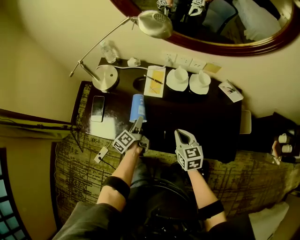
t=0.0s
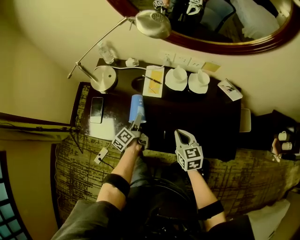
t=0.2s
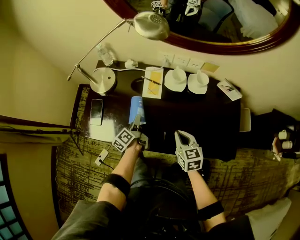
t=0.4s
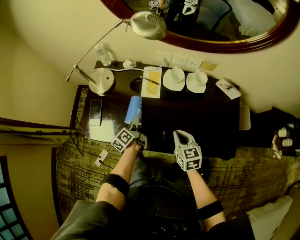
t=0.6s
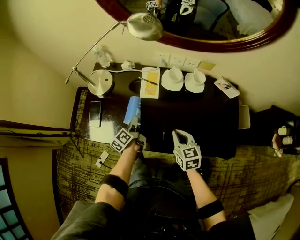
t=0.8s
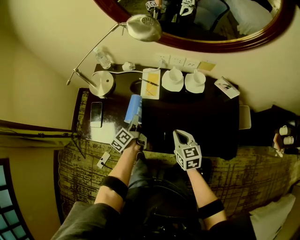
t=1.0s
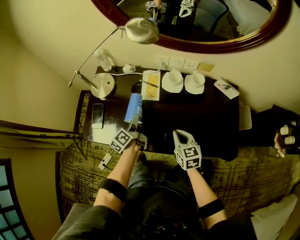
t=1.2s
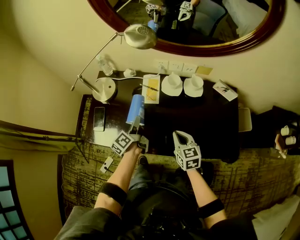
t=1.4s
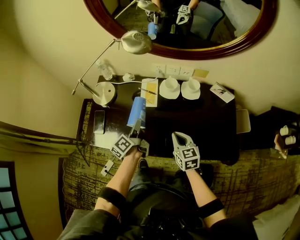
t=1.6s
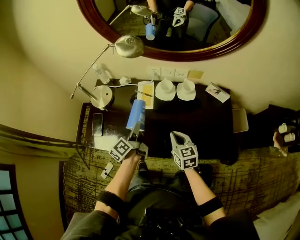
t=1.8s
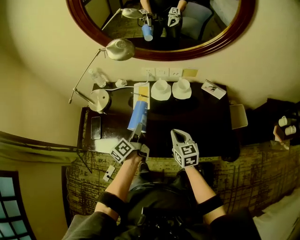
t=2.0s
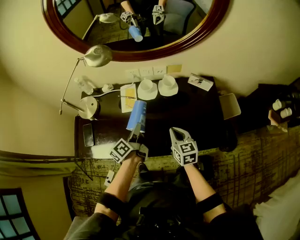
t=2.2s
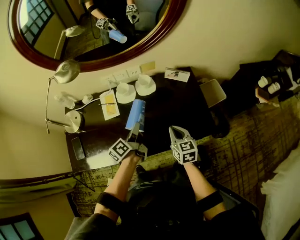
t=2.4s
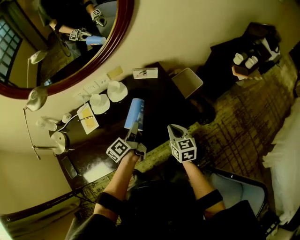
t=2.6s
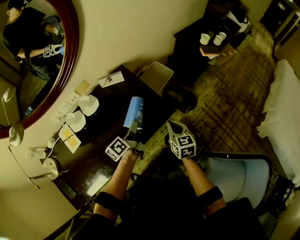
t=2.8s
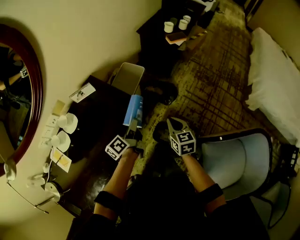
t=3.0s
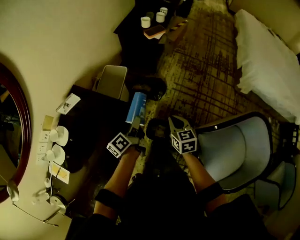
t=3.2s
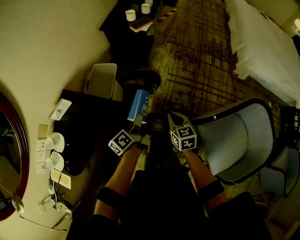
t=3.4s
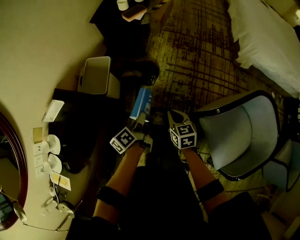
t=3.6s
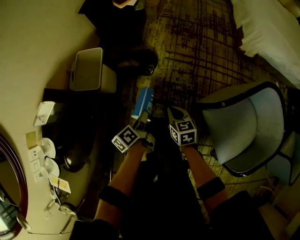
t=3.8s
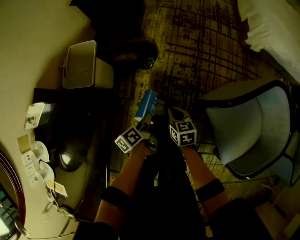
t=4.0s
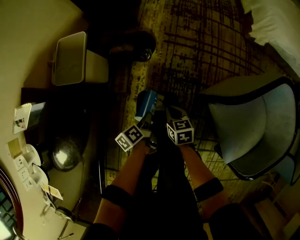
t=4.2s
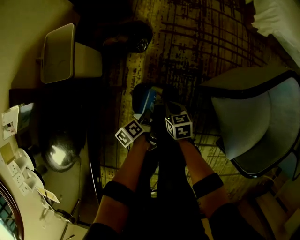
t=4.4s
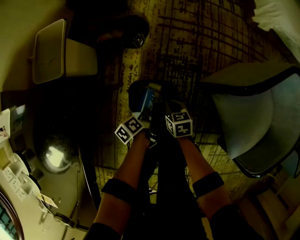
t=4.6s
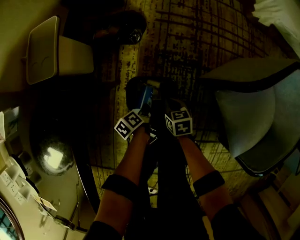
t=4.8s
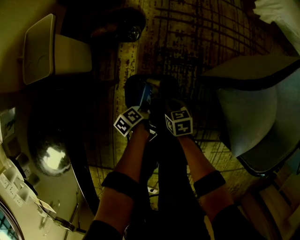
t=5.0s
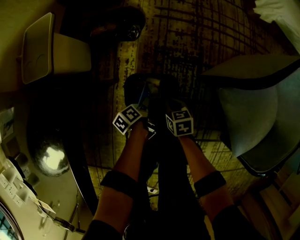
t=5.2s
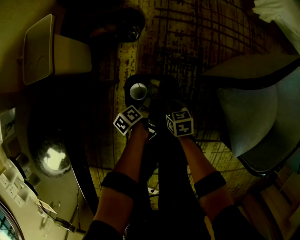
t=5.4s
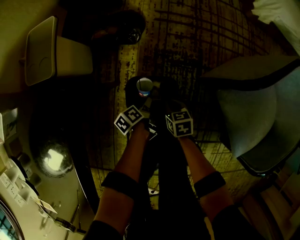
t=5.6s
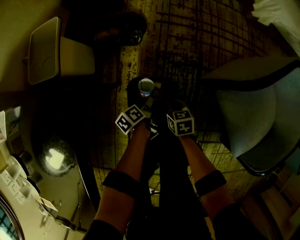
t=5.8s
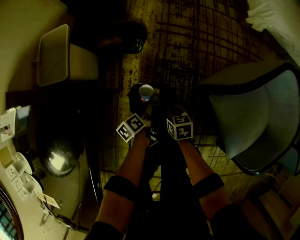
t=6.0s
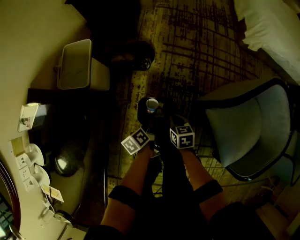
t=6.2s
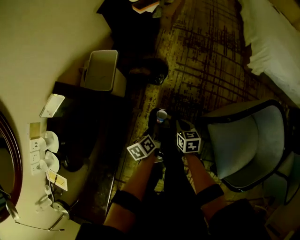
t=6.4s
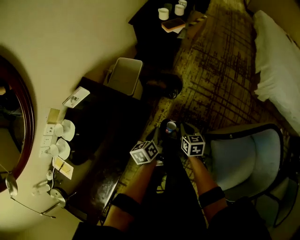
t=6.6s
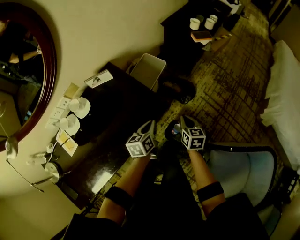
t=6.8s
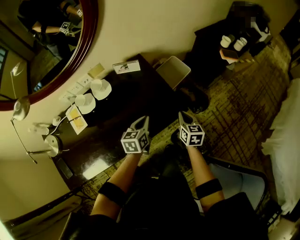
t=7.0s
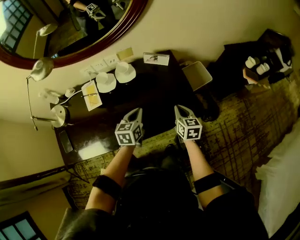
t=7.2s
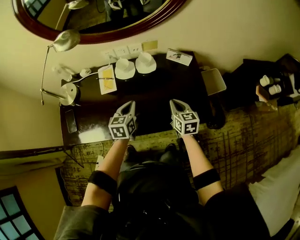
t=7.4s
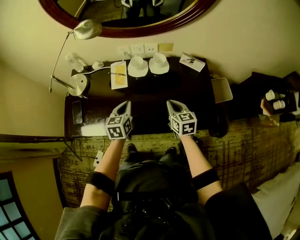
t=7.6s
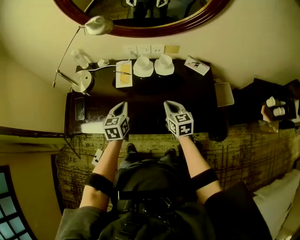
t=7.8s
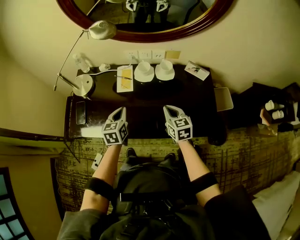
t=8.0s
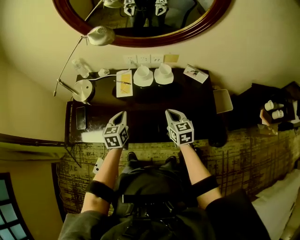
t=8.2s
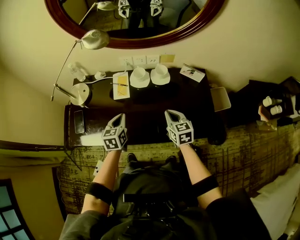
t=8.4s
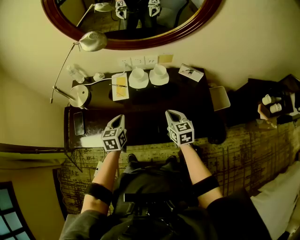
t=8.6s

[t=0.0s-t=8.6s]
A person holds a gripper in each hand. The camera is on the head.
t=0.0s to t=1.4s: The left gripper travels upward by roughly 10 cm, and closes.
t=1.4s to t=2.8s: The pair of grippers is taken roughly 50 cm. The right gripper swivels roughly 50 degrees, while the left gripper swivels some 60 degrees.
t=2.8s to t=4.4s: The grippers both shift downward by about 50 cm. The left gripper tips its fingers downward by about 30 degrees, while the right gripper changes its angle by some 40 degrees.
t=4.4s to t=5.8s: Both grippers move downward, some 10 cm. The left gripper opens its fingers.
t=5.8s to t=7.2s: Both grippers are carried roughly 40 cm. Both grippers move upward, some 50 cm. The right gripper turns by approximately 60 degrees; the left gripper rotates some 60 degrees, and closes.
t=7.2s to t=8.6s: The left gripper changes place by roughly 25 cm, and swivels about 20 degrees, while the right gripper ends up about 20 cm from where it was, and swivels about 30 degrees.

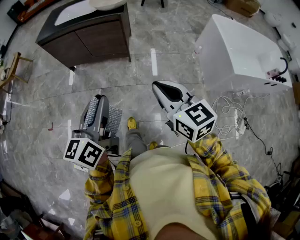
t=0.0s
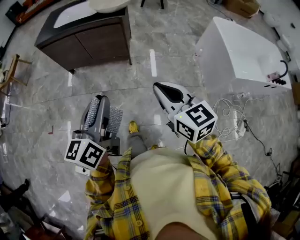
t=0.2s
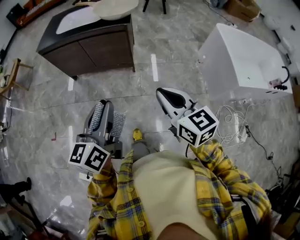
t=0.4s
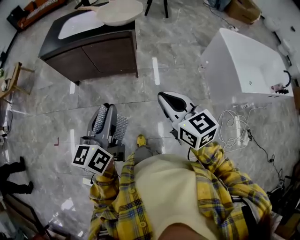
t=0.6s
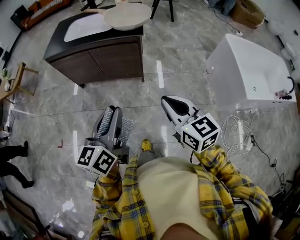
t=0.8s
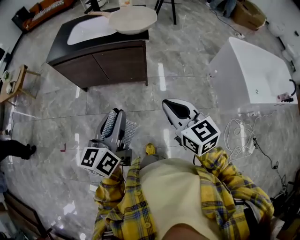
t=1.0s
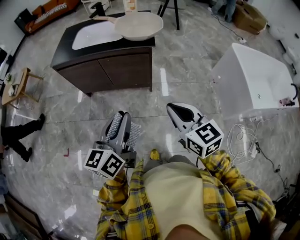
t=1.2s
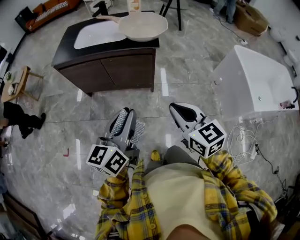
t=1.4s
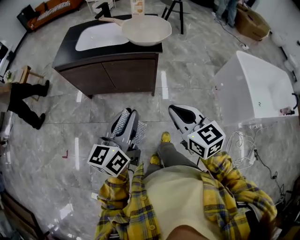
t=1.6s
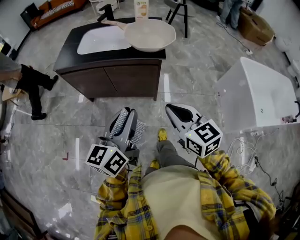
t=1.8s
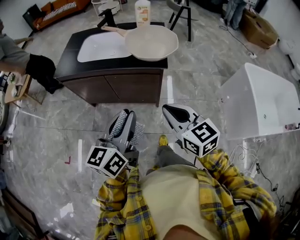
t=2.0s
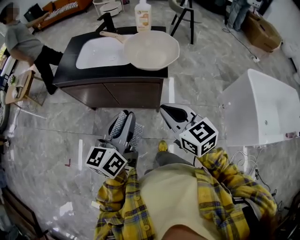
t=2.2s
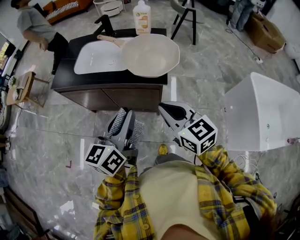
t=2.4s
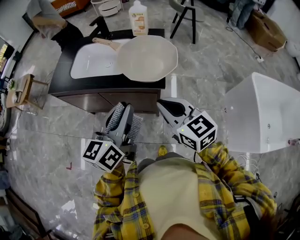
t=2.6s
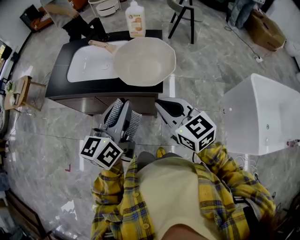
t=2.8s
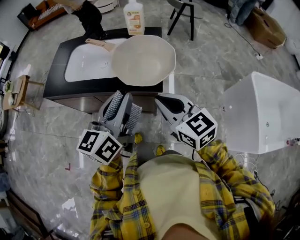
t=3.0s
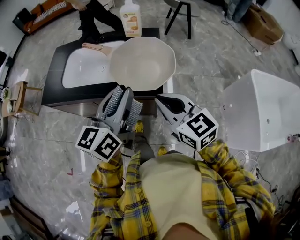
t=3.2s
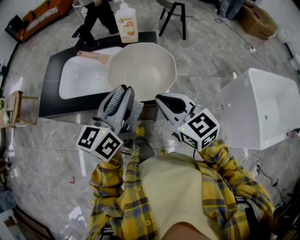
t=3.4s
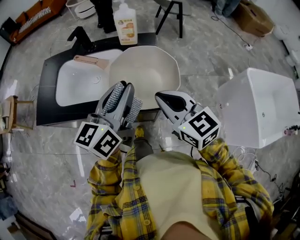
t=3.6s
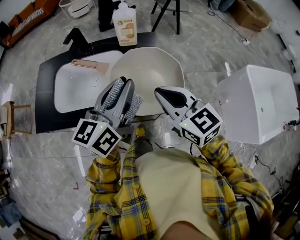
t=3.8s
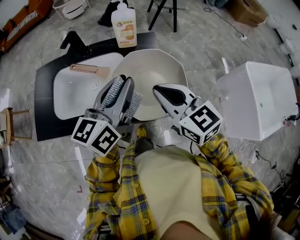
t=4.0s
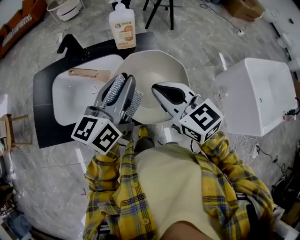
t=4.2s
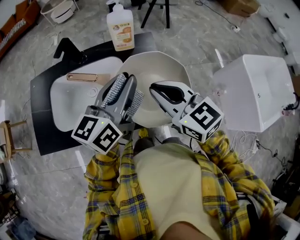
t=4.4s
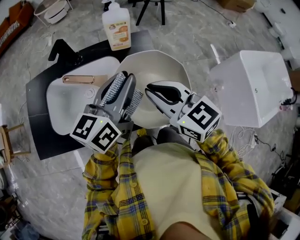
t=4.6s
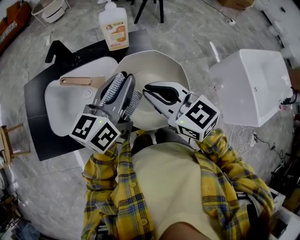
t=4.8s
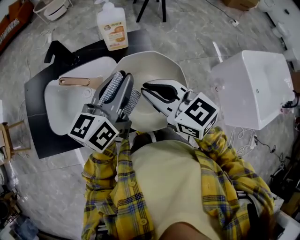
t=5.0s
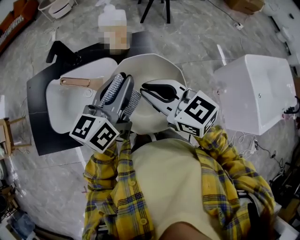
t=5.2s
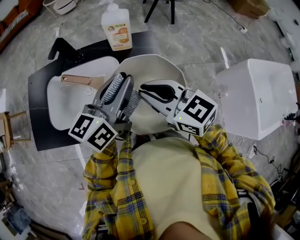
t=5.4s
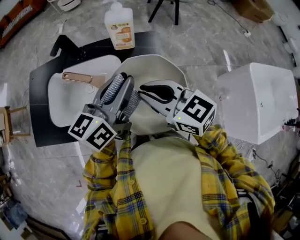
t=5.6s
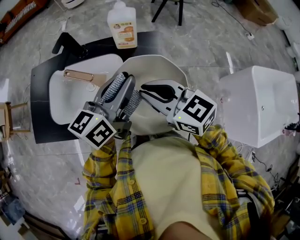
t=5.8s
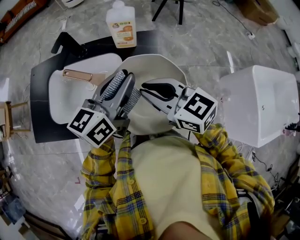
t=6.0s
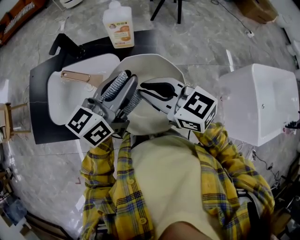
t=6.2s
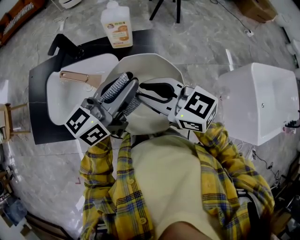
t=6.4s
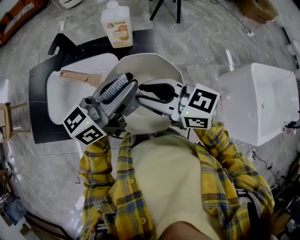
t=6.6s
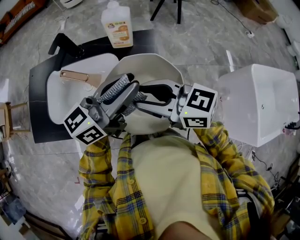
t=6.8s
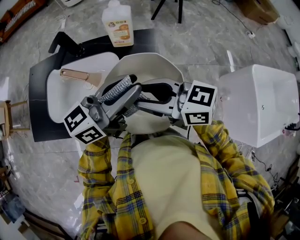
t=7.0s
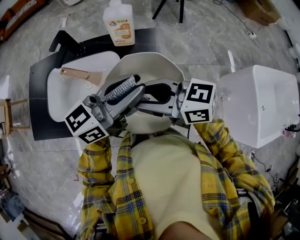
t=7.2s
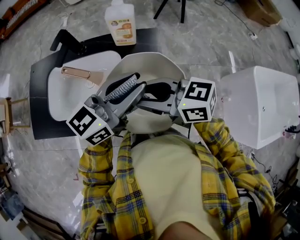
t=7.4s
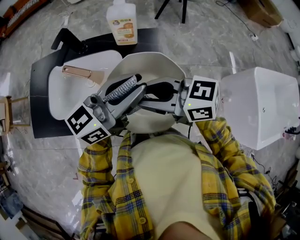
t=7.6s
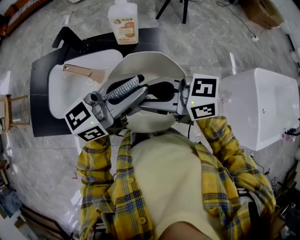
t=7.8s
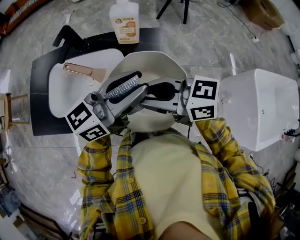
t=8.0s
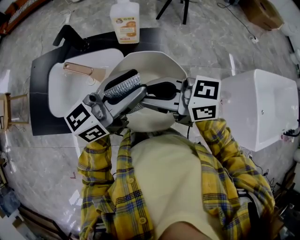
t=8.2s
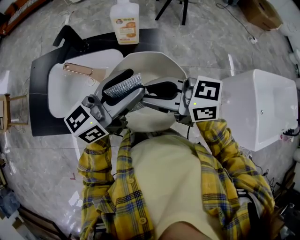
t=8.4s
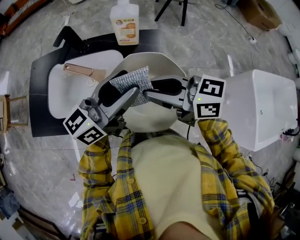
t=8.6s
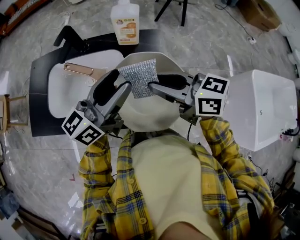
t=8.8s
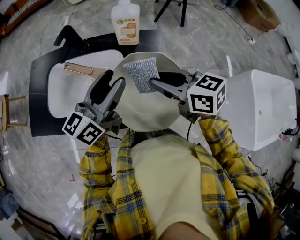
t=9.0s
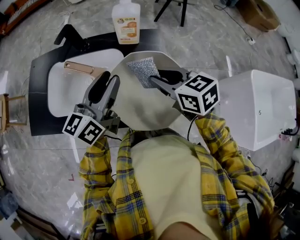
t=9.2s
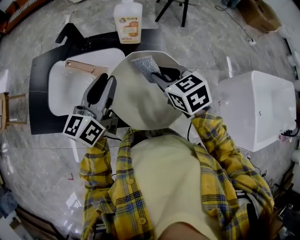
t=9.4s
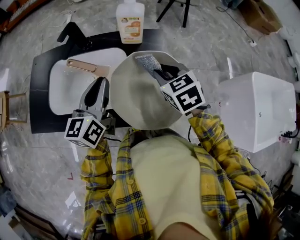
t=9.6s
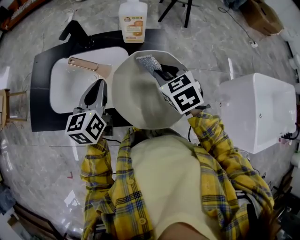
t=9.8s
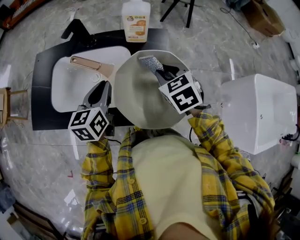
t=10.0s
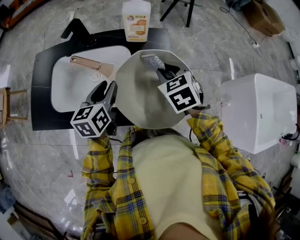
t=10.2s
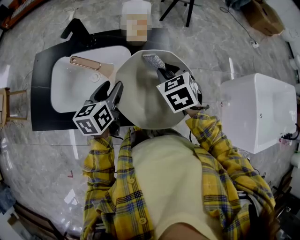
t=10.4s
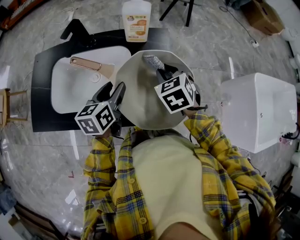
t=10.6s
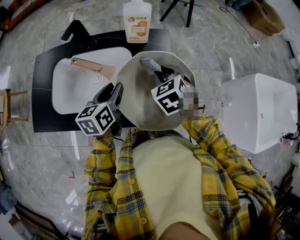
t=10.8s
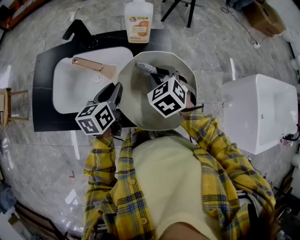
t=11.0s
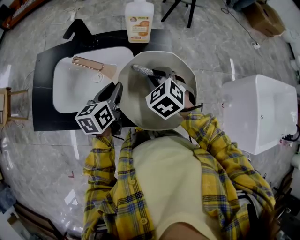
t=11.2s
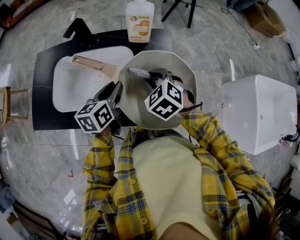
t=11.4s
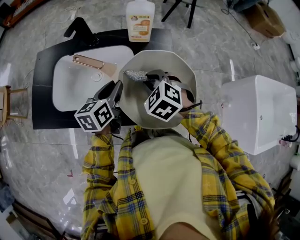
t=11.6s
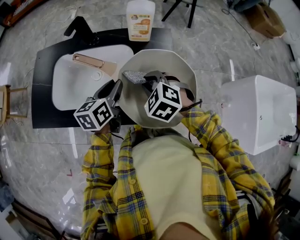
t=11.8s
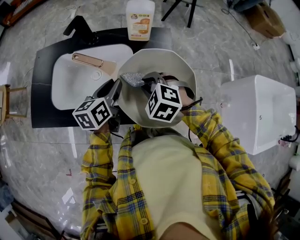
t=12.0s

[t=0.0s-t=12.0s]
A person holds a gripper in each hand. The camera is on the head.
t=0.0s to t=1.6s: The right gripper shifts roughly 25 cm forward and to the left. The left gripper goes roughly 25 cm forward.
t=1.6s to t=3.0s: The two grippers go roughly 30 cm forward.
t=3.0s to t=4.4s: Both grippers travel together forward, about 20 cm. The left gripper turns by about 20 degrees.
t=4.4s to t=6.0s: The grippers stay close to where they were, moving slightly.
t=6.0s to t=7.6s: The right gripper swivels about 20 degrees, and opens up; the left gripper moves approximately 5 cm, and rotates about 20 degrees.
t=7.6s to t=9.0s: The right gripper ends up about 5 cm from where it was, and changes its angle by roughly 20 degrees, while the left gripper ends up about 10 cm from where it was, rotates approximately 20 degrees, and opens.
t=9.0s to t=10.4s: The right gripper is displaced downward by roughly 10 cm, and rotates approximately 50 degrees, while the left gripper travels downward and to the left by about 15 cm, tilts its fingers some 30 degrees downward, and closes and opens again.
t=10.4s to t=12.0s: The left gripper closes. Meanwhile the right gripper shifts approximately 10 cm to the left and backward, and turns by approximately 40 degrees.

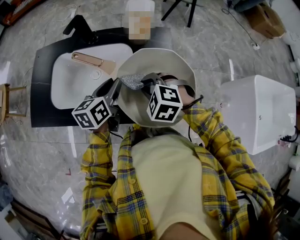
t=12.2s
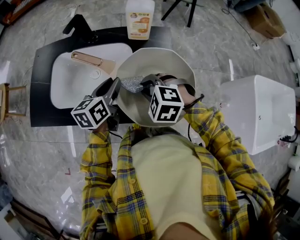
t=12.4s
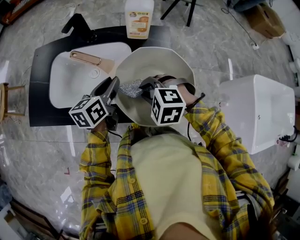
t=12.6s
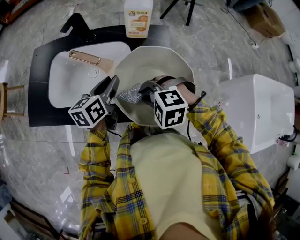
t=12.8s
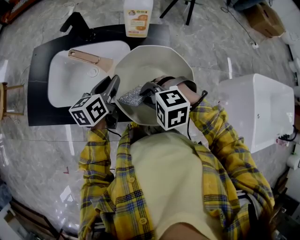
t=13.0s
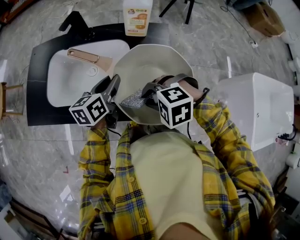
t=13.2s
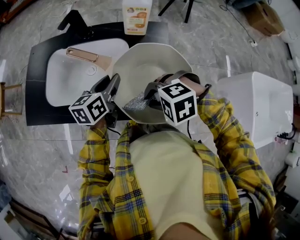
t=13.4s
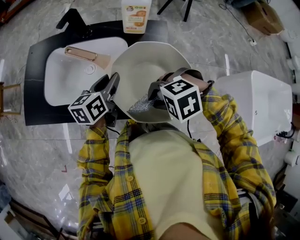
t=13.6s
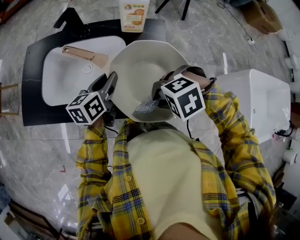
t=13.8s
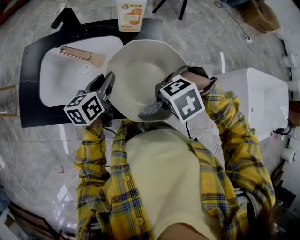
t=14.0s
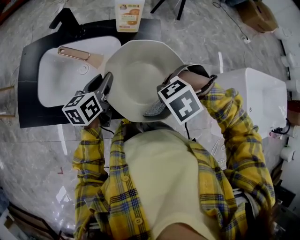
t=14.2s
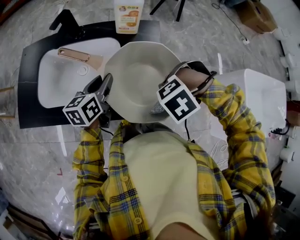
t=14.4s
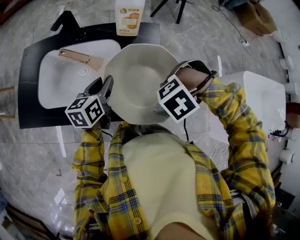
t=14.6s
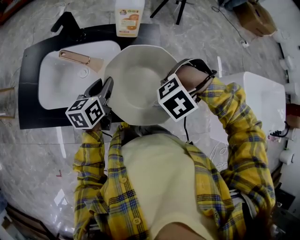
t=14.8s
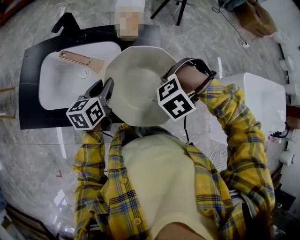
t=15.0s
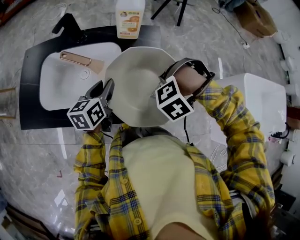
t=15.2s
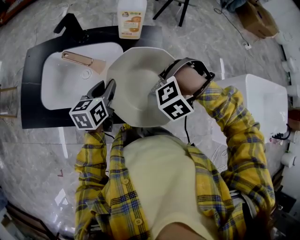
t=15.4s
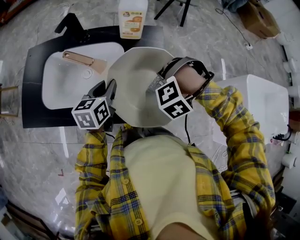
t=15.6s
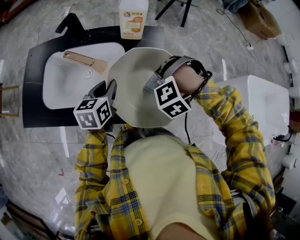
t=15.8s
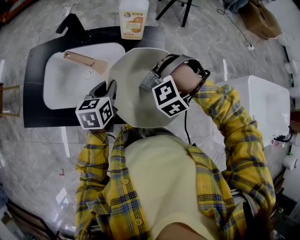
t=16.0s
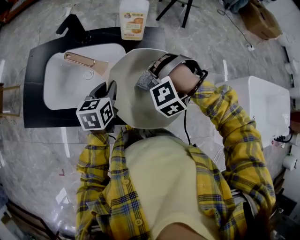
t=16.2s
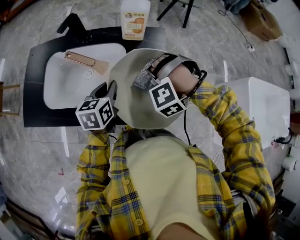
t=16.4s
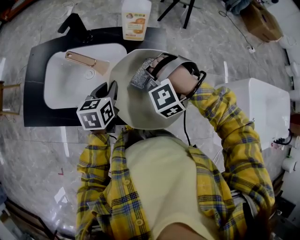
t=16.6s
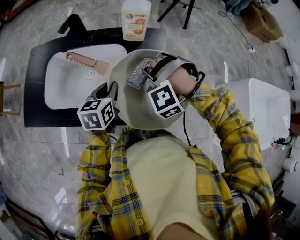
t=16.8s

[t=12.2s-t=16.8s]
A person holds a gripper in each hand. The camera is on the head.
t=12.2s to t=13.8s: The right gripper shifts by roughly 10 cm, and swivels approximately 50 degrees.
t=13.8s to t=15.2s: The right gripper ends up about 10 cm from where it was, and swivels roughly 40 degrees.
t=15.2s to t=16.8s: The right gripper changes place by approximately 10 cm, and changes its angle by approximately 40 degrees.
